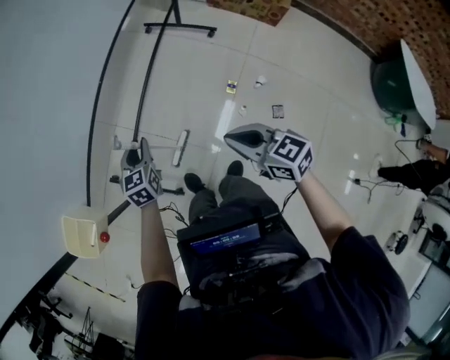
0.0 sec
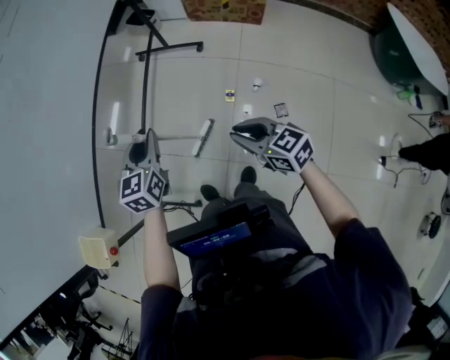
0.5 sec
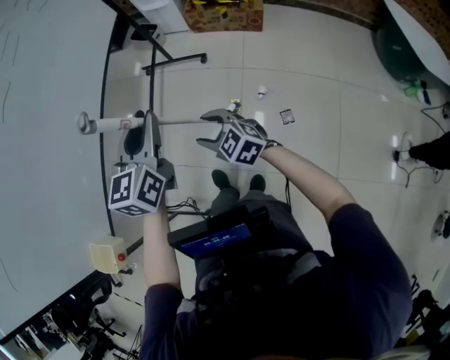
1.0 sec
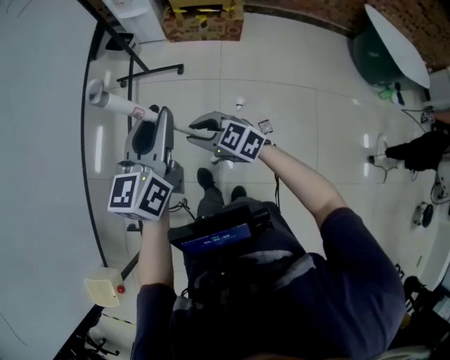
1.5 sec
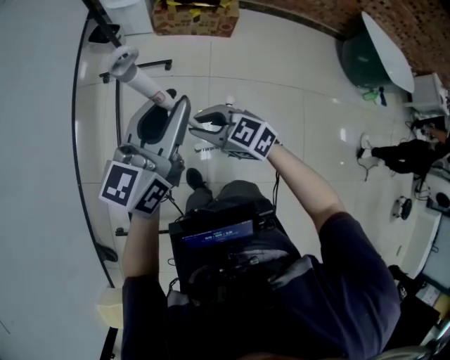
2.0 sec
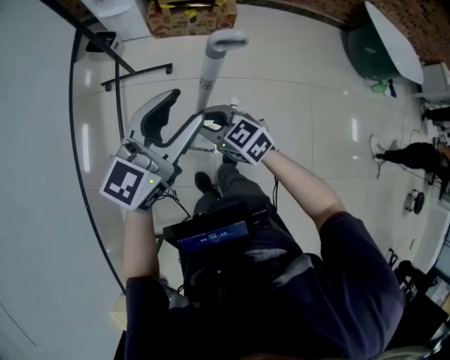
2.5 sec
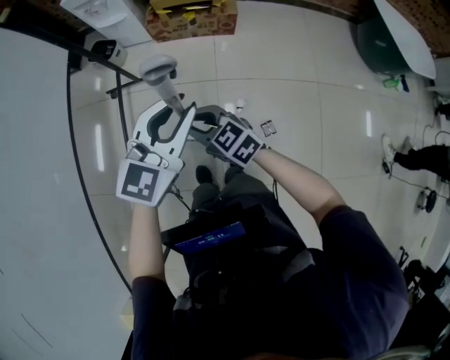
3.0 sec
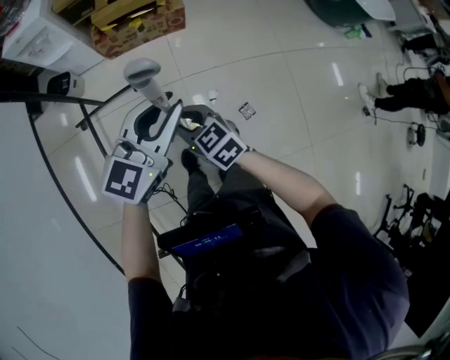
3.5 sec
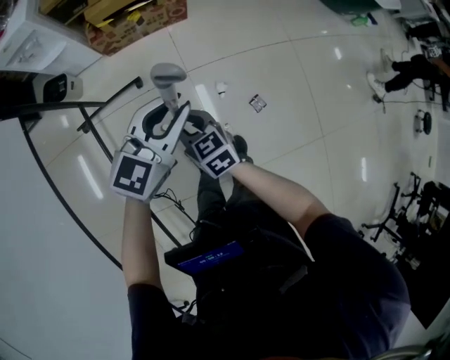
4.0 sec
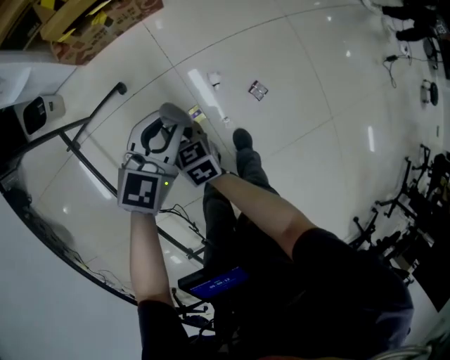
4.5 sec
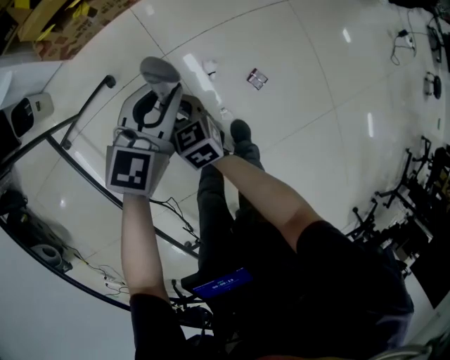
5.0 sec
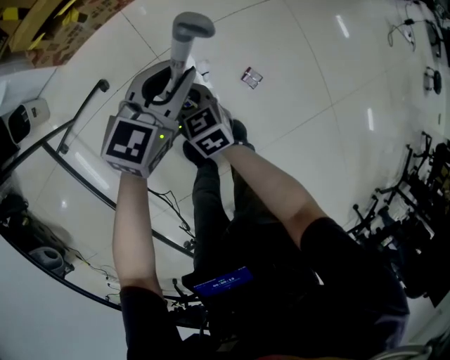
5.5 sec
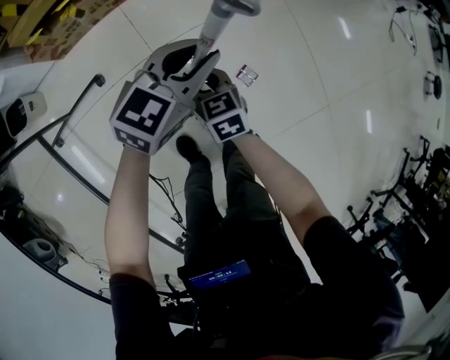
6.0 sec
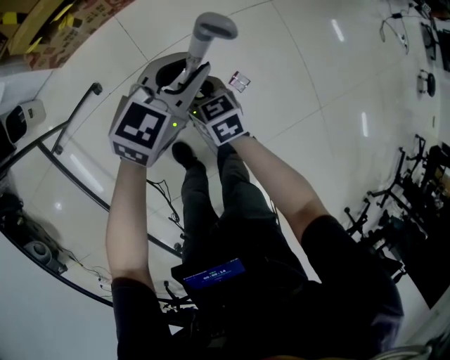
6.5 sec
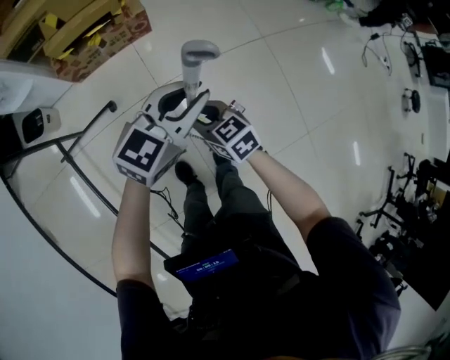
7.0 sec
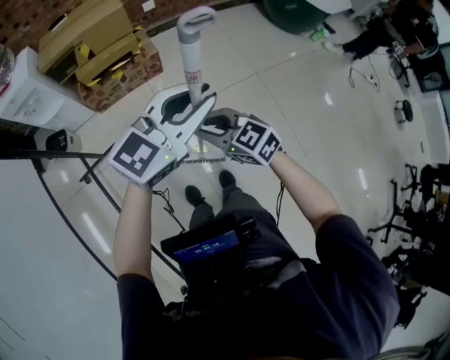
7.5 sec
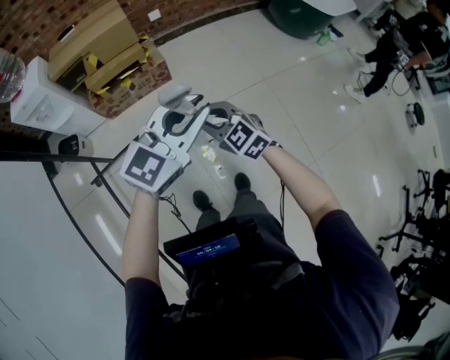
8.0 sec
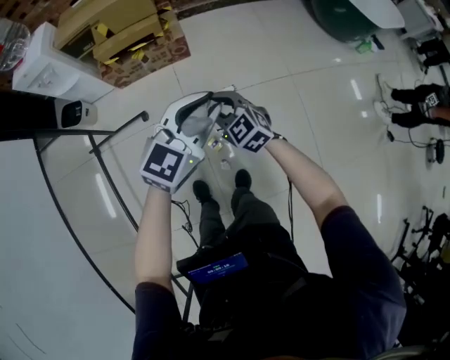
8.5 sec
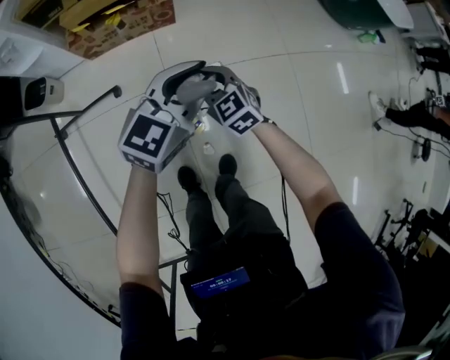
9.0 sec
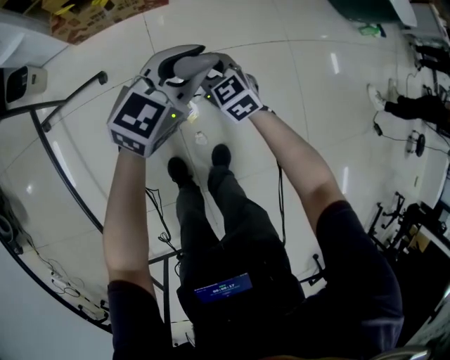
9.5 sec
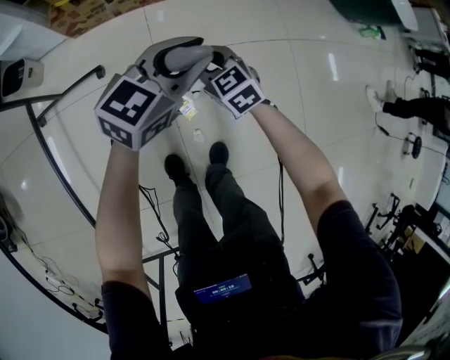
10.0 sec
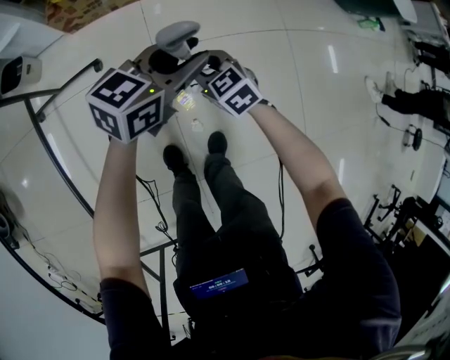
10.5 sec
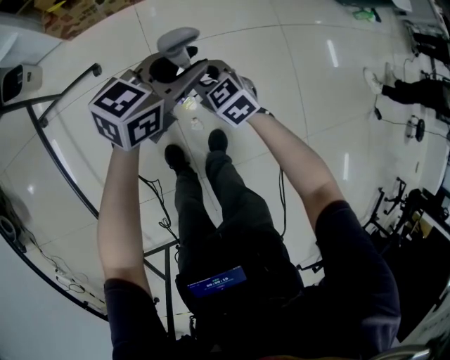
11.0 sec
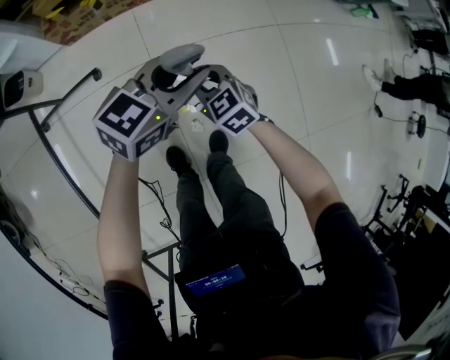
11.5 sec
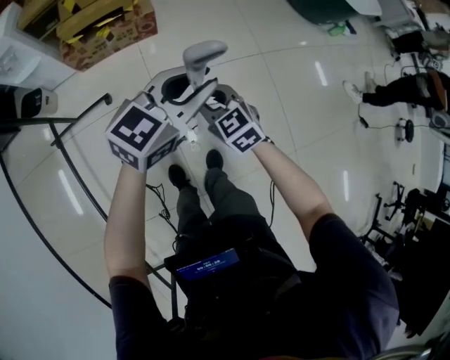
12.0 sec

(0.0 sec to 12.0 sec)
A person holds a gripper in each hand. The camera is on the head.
0.0 sec - 2.0 sec: The left gripper changes place by approximately 50 cm, and tilts its fingers approximately 40 degrees upward. The right gripper ends up roughly 25 cm from where it was, and opens, then closes again.
2.0 sec - 4.0 sec: The right gripper changes place by roughly 25 cm, and changes its angle by about 50 degrees; the left gripper moves roughly 30 cm, swivels approximately 40 degrees, and opens and closes again.
4.0 sec - 6.0 sec: Both grippers move downward, to the right and forward, some 30 cm.
6.0 sec - 8.0 sec: The two grippers go about 35 cm upward. The left gripper changes its angle by roughly 20 degrees, while the right gripper rotates some 40 degrees.
8.0 sec - 10.0 sec: The two grippers go roughly 30 cm downward. The left gripper turns by roughly 20 degrees.
10.0 sec - 12.0 sec: Both grippers travel together upward and backward, approximately 20 cm.

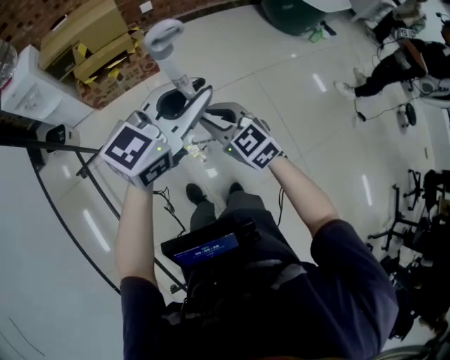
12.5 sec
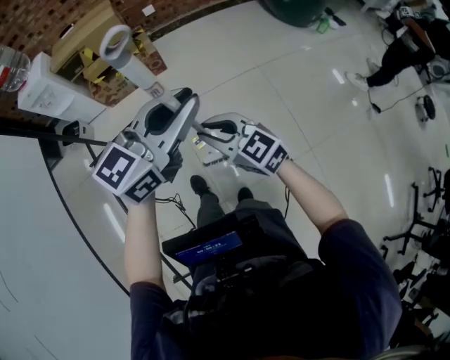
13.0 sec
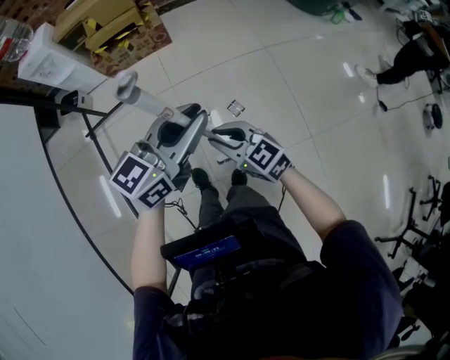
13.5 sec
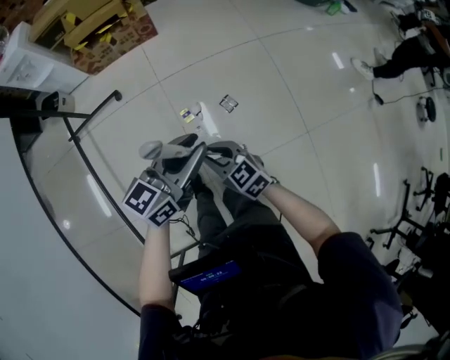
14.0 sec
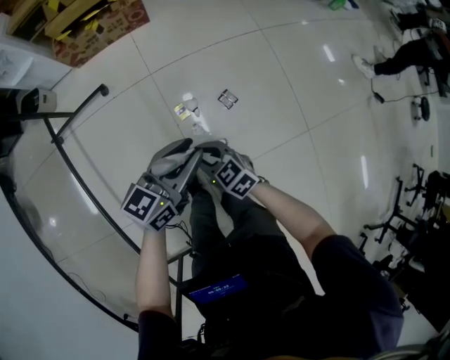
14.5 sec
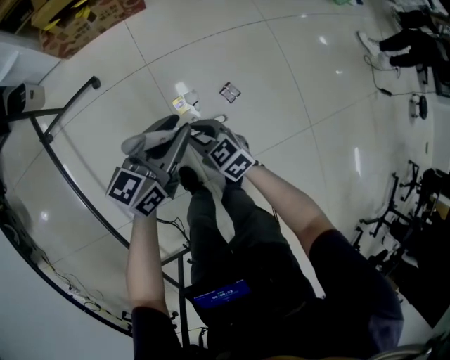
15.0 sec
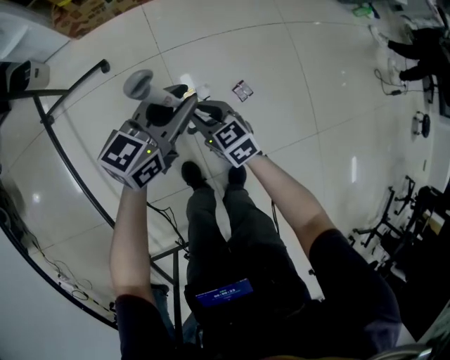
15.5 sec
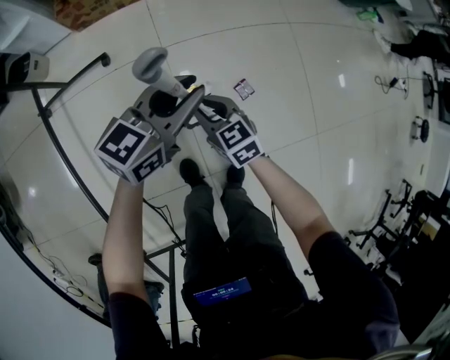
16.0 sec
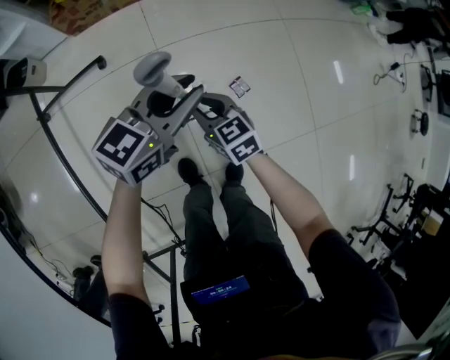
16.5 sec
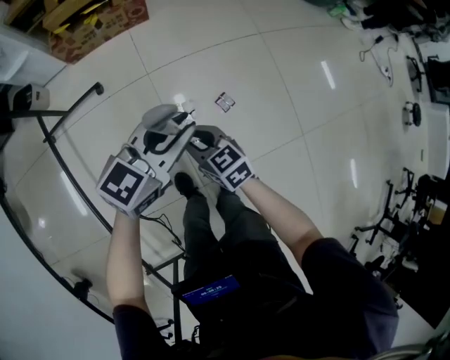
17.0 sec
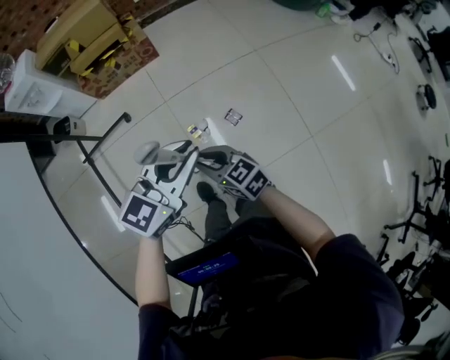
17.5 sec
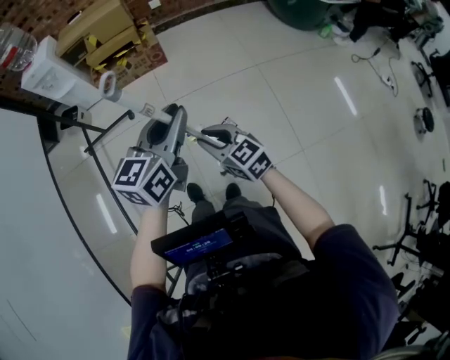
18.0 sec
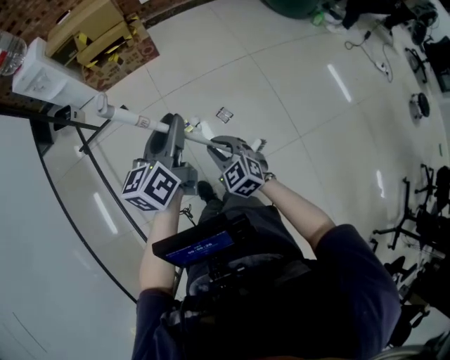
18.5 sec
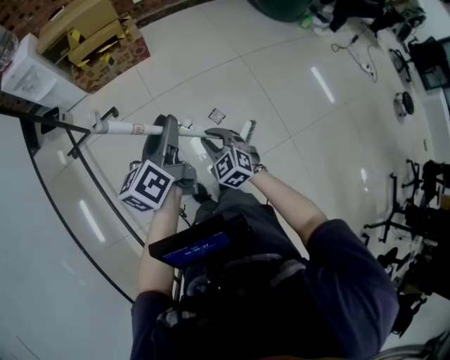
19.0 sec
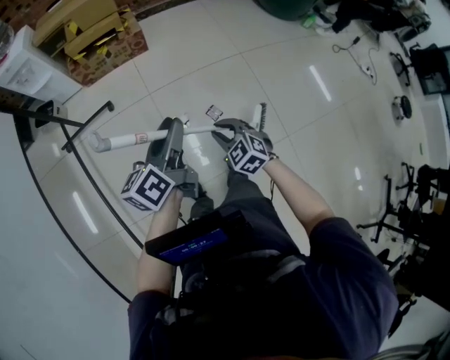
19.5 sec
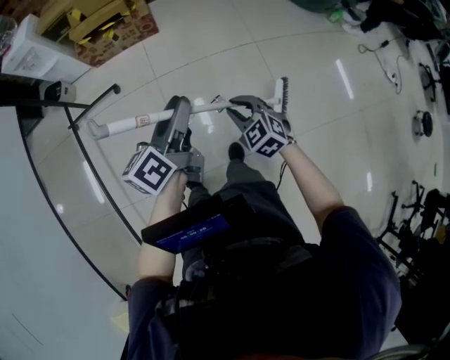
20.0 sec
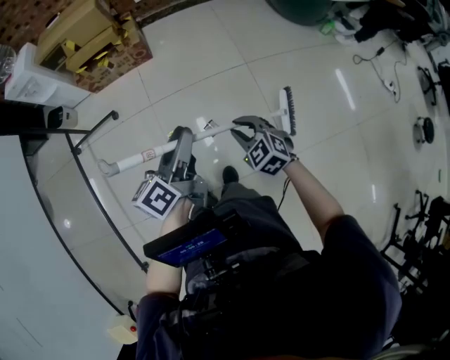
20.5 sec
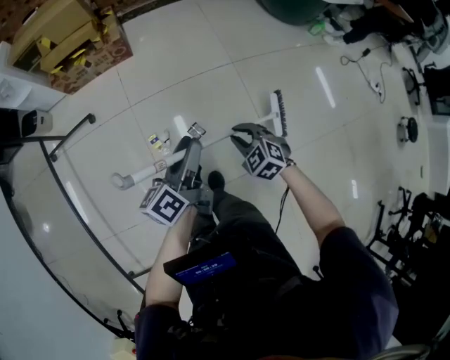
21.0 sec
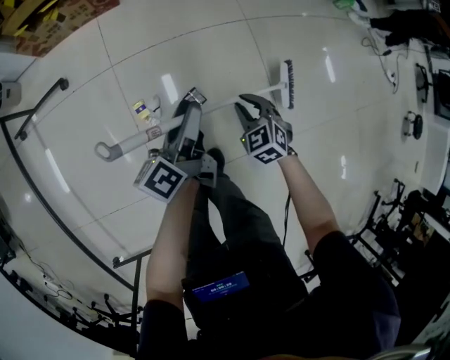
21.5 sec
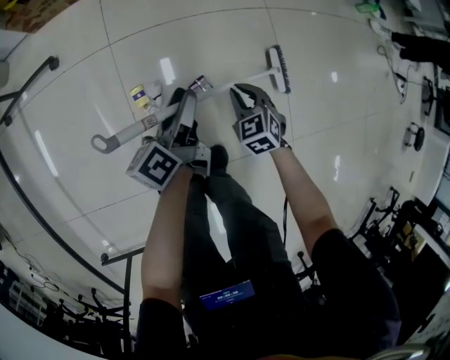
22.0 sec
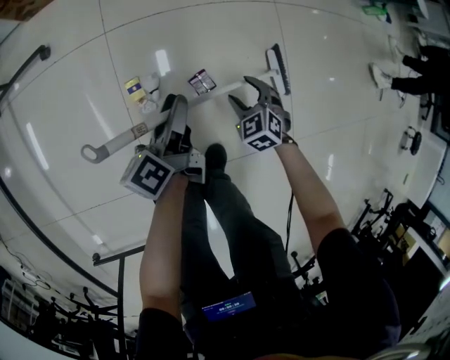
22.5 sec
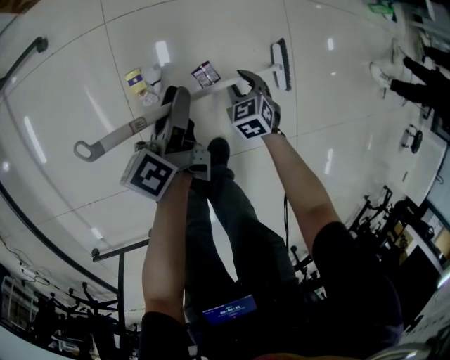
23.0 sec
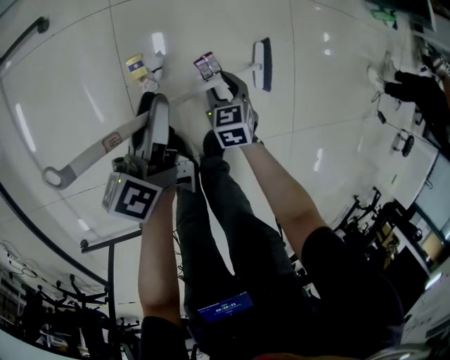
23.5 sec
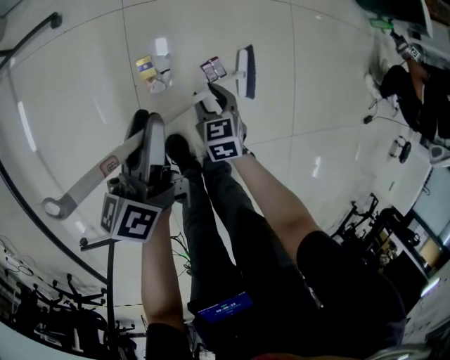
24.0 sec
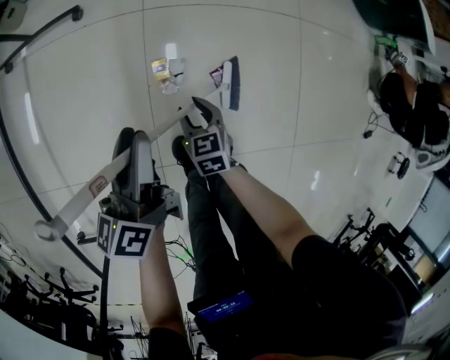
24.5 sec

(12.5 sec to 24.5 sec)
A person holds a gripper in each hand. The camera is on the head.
12.5 sec - 14.5 sec: The grippers both shift downward and backward by about 35 cm. The right gripper rotates approximately 20 degrees; the left gripper changes its angle by approximately 30 degrees.
14.5 sec - 16.5 sec: The left gripper heads forward, to the left and downward, covering some 15 cm; the right gripper travels forward by approximately 15 cm.
16.5 sec - 18.5 sec: The left gripper heads upward and backward, covering approximately 30 cm, and rotates about 30 degrees. The right gripper is displaced upward, backward and to the right by approximately 35 cm, and swivels some 20 degrees.
18.5 sec - 20.5 sec: The right gripper goes roughly 25 cm to the right and forward. The left gripper travels to the right and forward by some 15 cm, and rotates some 20 degrees.
20.5 sec - 22.5 sec: Both grippers move downward, approximately 50 cm. The right gripper opens. Meanwhile the left gripper changes its angle by approximately 20 degrees.
22.5 sec - 24.5 sec: The left gripper is displaced to the left, upward and backward by approximately 25 cm, and turns by approximately 20 degrees. The right gripper moves to the left, some 25 cm, and swivels some 30 degrees.

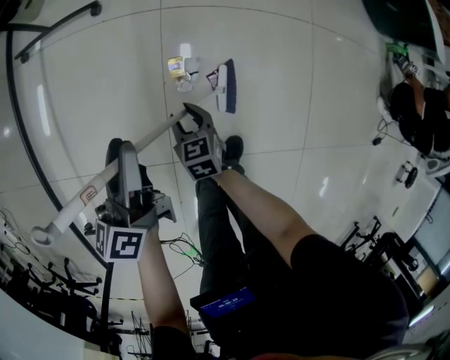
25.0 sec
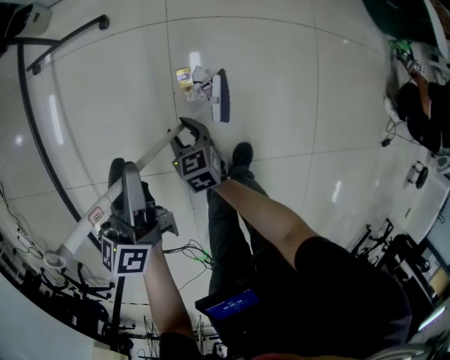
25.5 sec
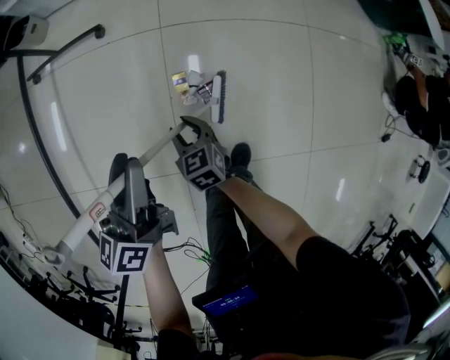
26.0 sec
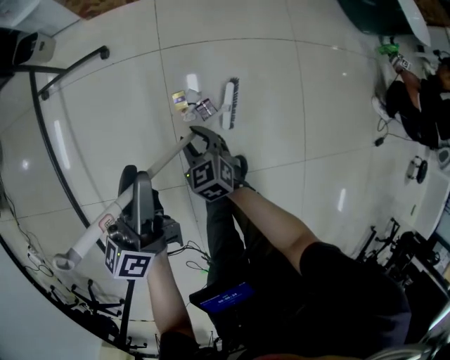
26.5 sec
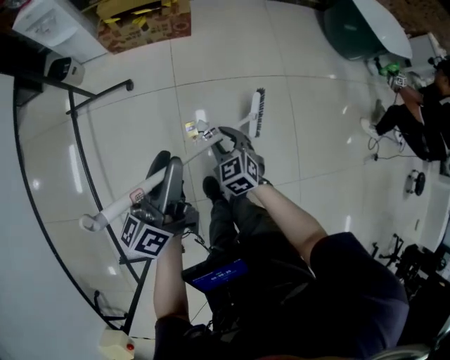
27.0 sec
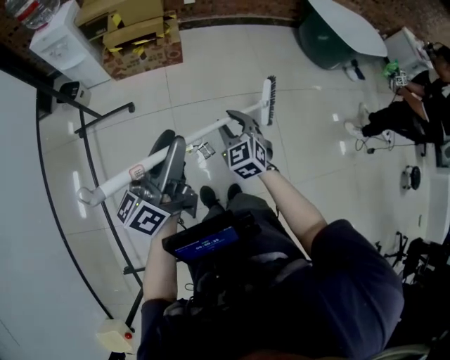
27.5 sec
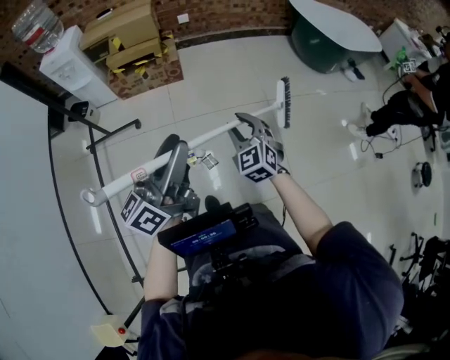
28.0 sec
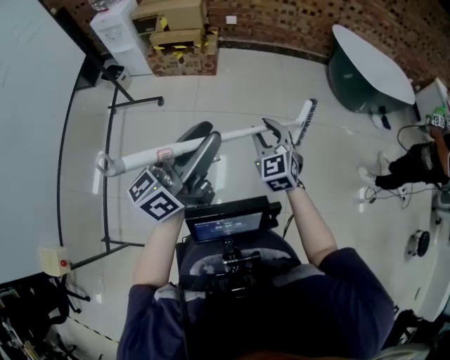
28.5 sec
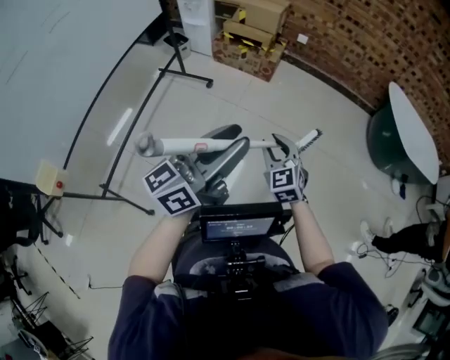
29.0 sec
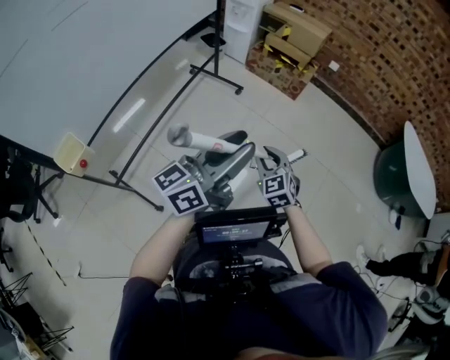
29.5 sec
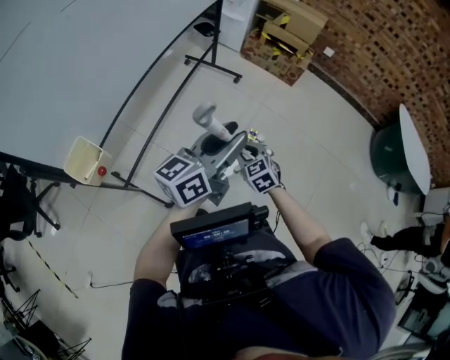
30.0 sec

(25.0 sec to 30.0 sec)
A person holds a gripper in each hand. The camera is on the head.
25.0 sec - 27.5 sec: Both grippers travel together upward, some 40 cm. The left gripper swivels roughly 40 degrees, while the right gripper rotates approximately 40 degrees.
27.5 sec - 30.0 sec: The left gripper shifts by approximately 35 cm, and changes its angle by about 30 degrees, while the right gripper goes upward and returns, roughly 10 cm each way, and changes its angle by about 40 degrees.
